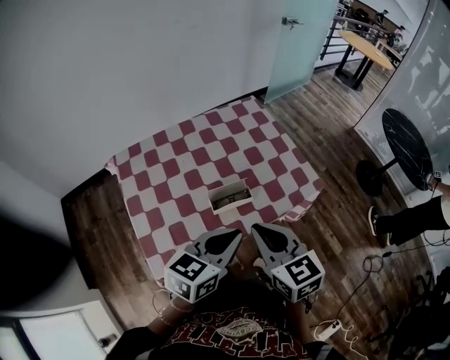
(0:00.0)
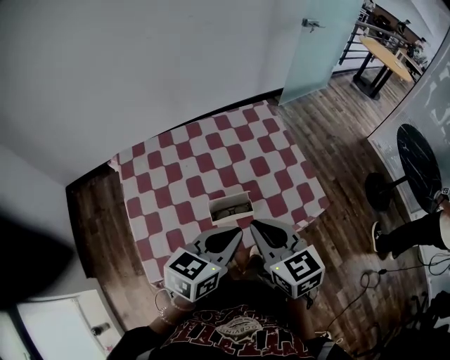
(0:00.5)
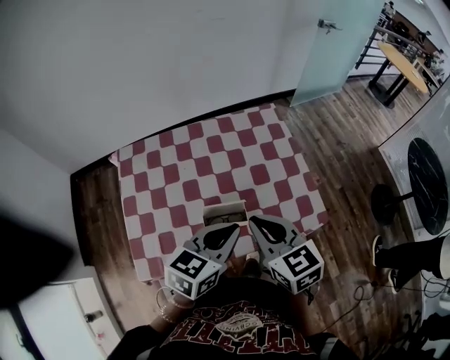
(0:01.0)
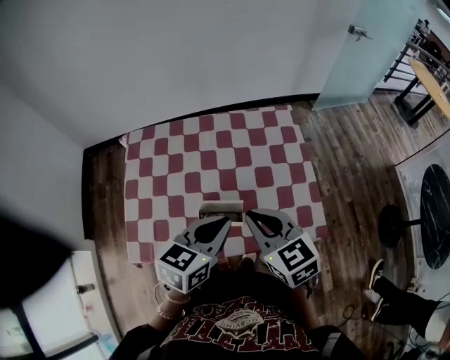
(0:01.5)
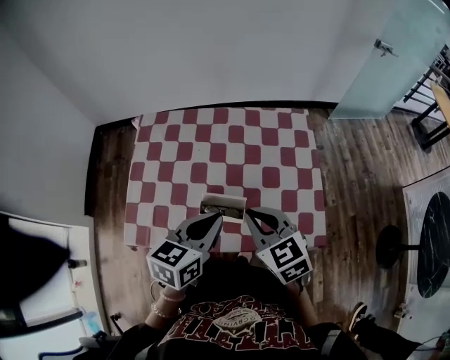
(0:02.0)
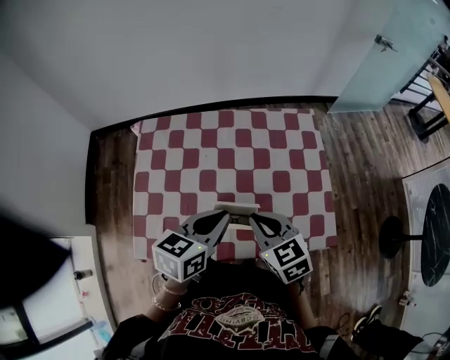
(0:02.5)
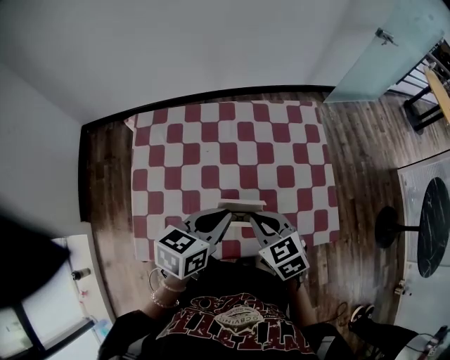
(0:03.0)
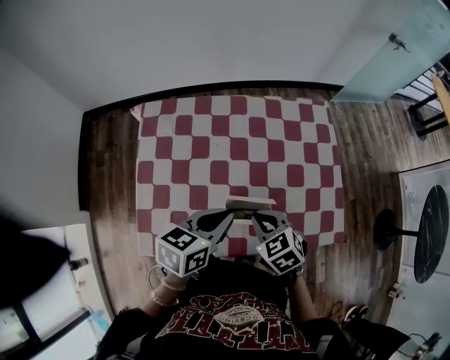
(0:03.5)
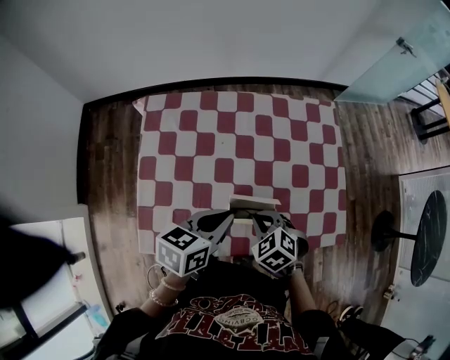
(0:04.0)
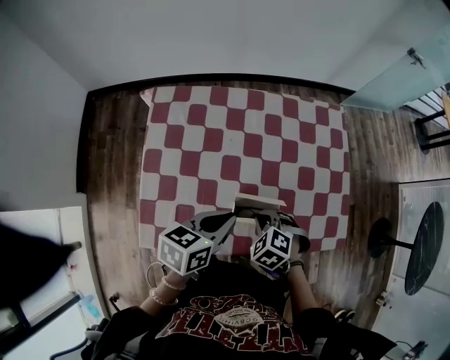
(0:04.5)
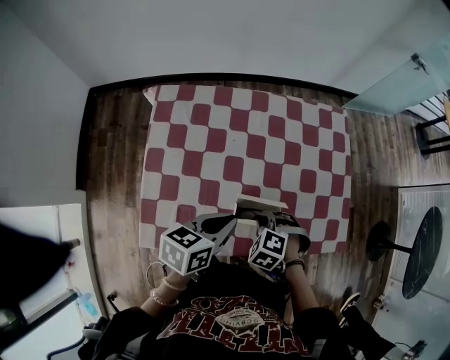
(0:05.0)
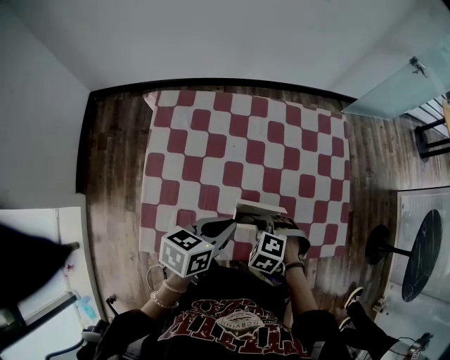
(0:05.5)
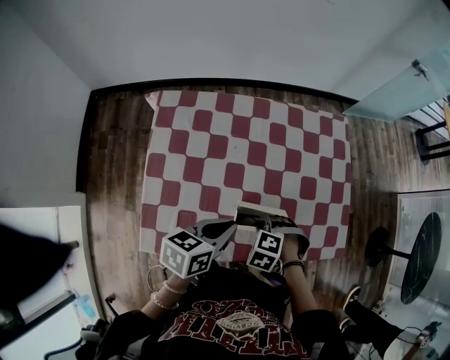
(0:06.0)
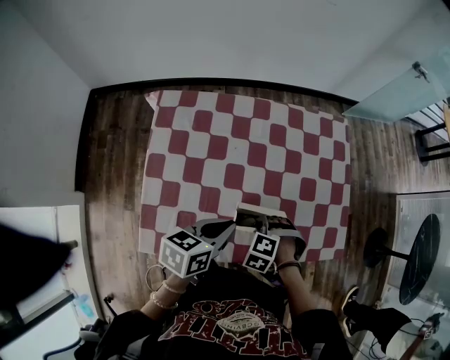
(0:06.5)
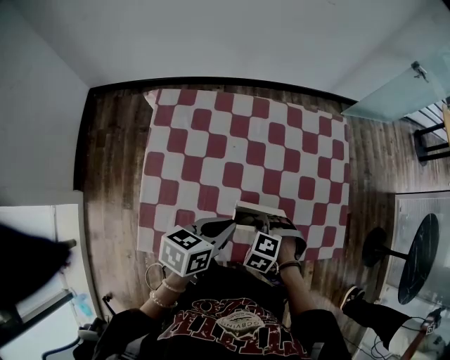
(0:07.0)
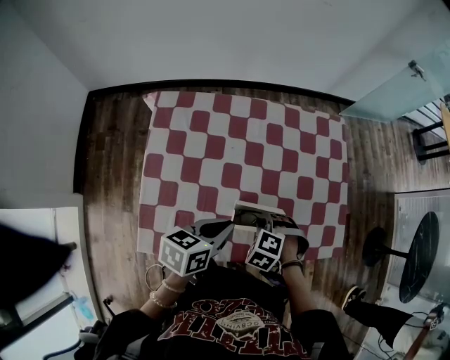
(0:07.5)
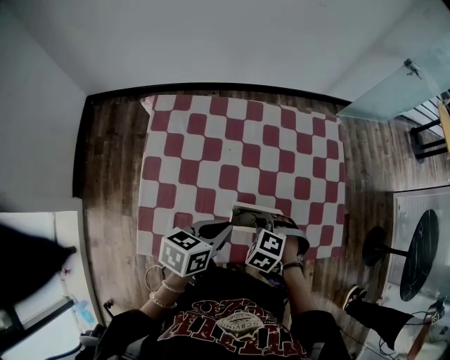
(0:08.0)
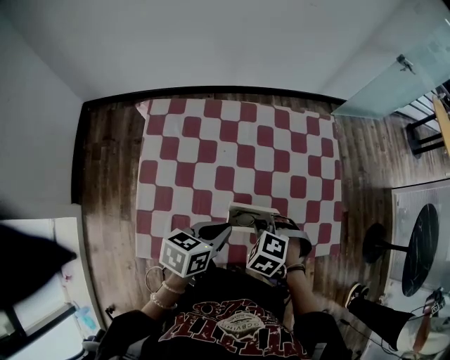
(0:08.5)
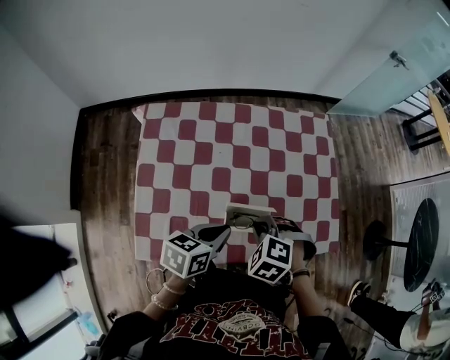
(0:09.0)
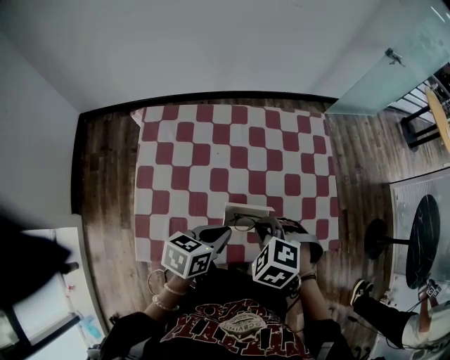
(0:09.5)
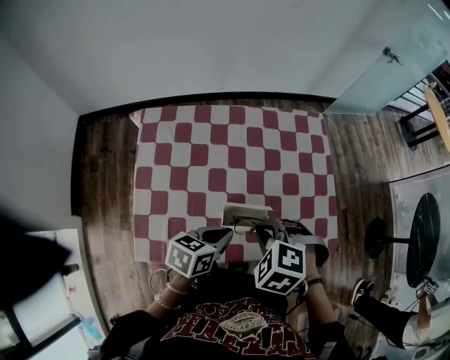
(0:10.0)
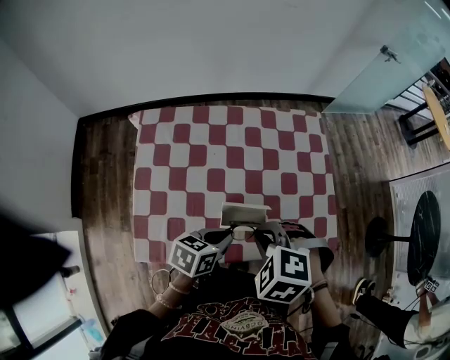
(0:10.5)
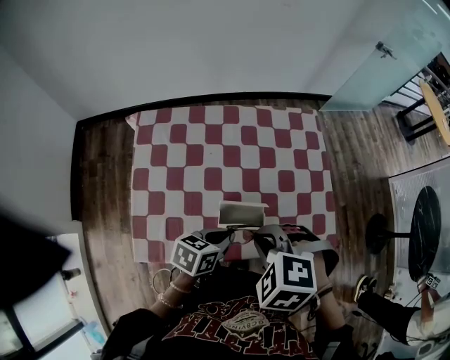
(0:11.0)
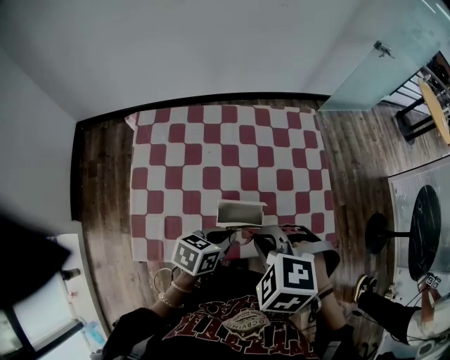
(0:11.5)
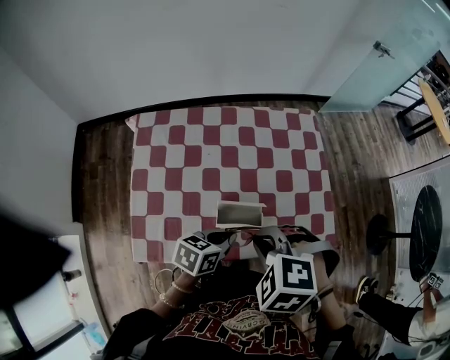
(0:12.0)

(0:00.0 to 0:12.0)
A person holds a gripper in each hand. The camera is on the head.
0:00.0 - 0:02.0: The left gripper moves roughly 15 cm, and rotates approximately 40 degrees; the right gripper changes place by approximately 15 cm, and changes its angle by about 40 degrees.
0:02.0 - 0:04.0: The right gripper shifts some 20 cm downward and to the left, and points its fingers roughly 30 degrees further downward. Meanwhile the left gripper goes roughly 10 cm to the left and downward.
0:04.0 - 0:06.0: The right gripper shifts roughly 5 cm downward, and rotates about 30 degrees.
0:06.0 - 0:08.0: The grippers stay close to where they were, moving slightly.
0:08.0 - 0:10.0: The right gripper moves upward, about 15 cm.
0:10.0 - 0:12.0: The right gripper heads upward, covering about 5 cm.

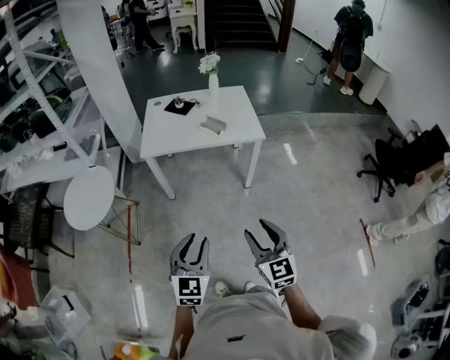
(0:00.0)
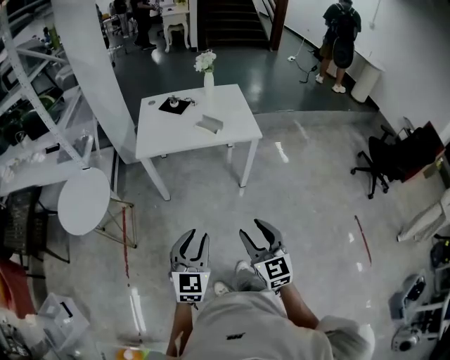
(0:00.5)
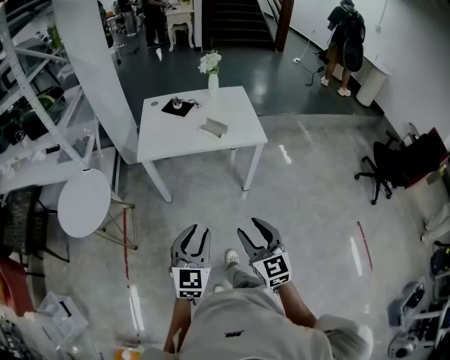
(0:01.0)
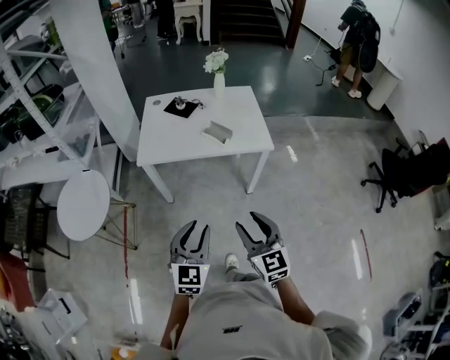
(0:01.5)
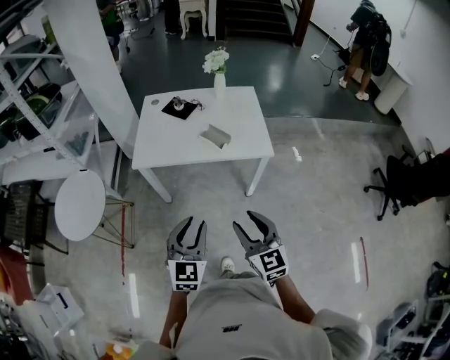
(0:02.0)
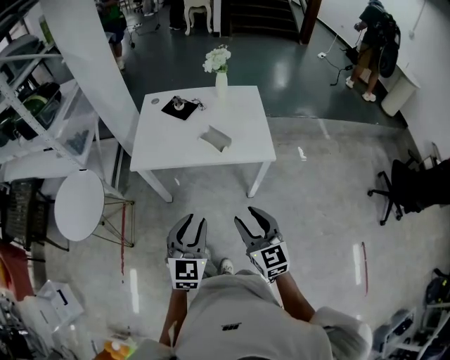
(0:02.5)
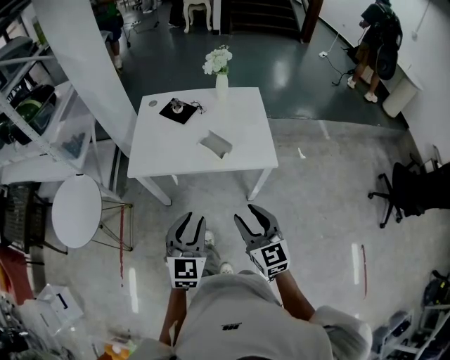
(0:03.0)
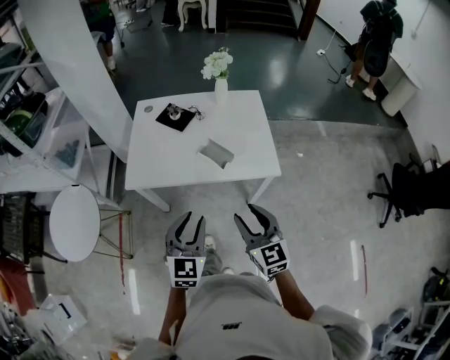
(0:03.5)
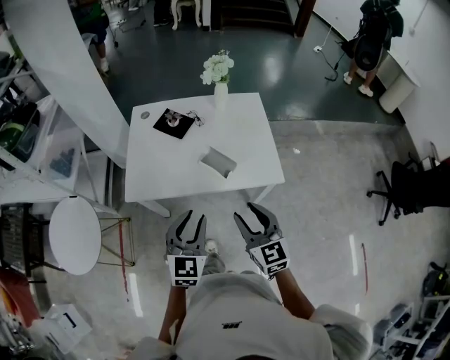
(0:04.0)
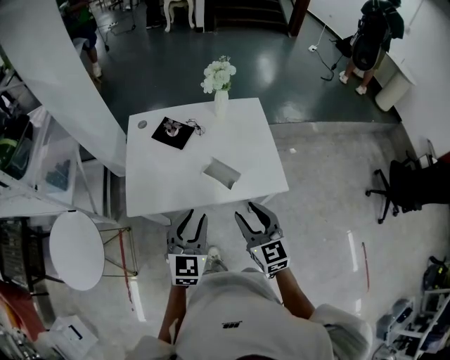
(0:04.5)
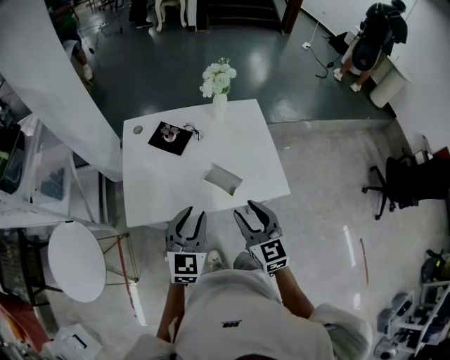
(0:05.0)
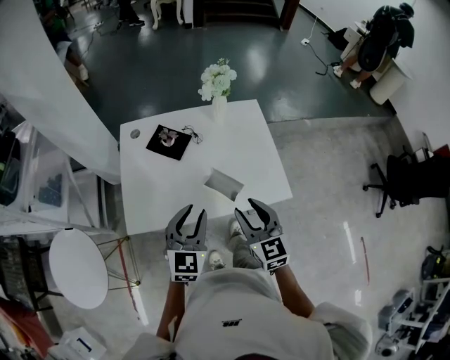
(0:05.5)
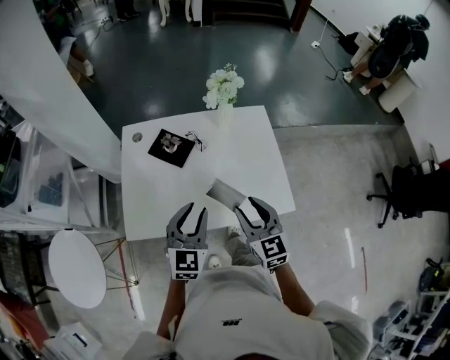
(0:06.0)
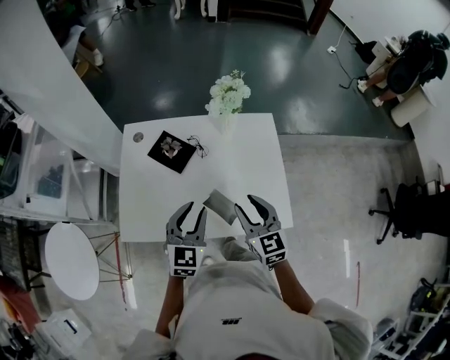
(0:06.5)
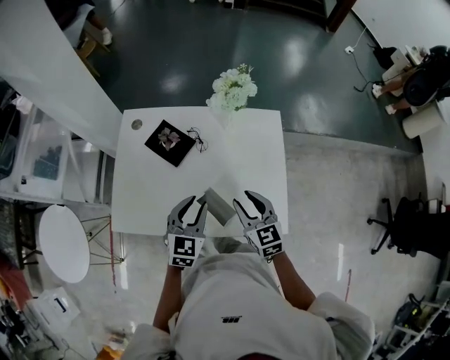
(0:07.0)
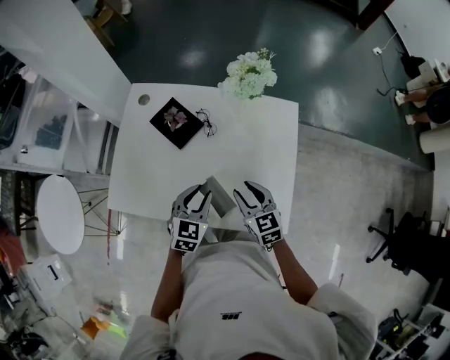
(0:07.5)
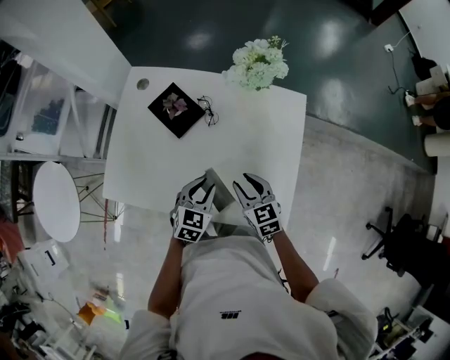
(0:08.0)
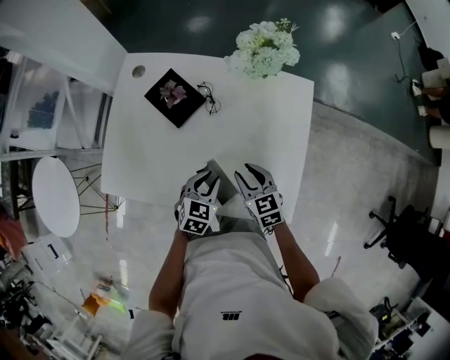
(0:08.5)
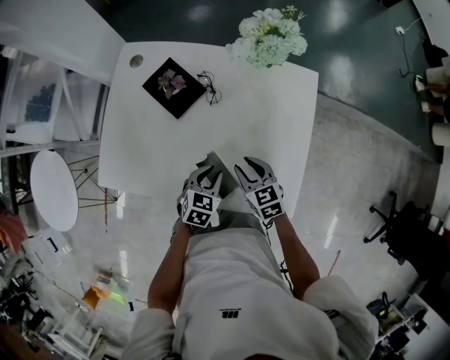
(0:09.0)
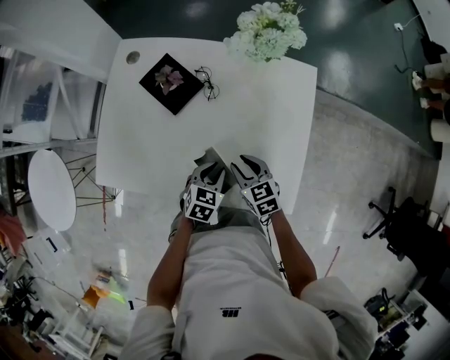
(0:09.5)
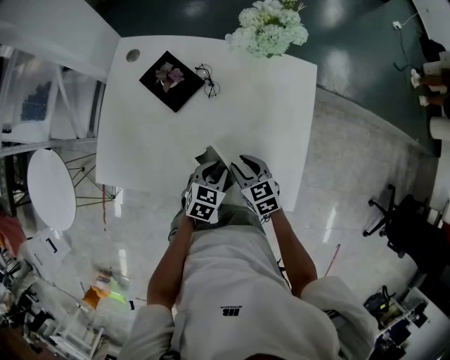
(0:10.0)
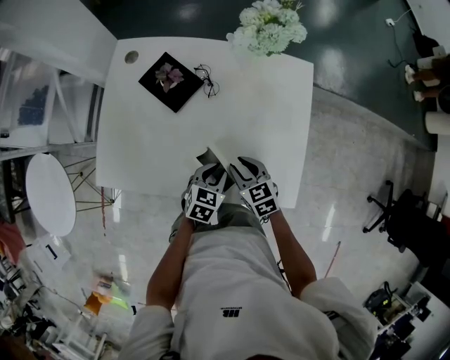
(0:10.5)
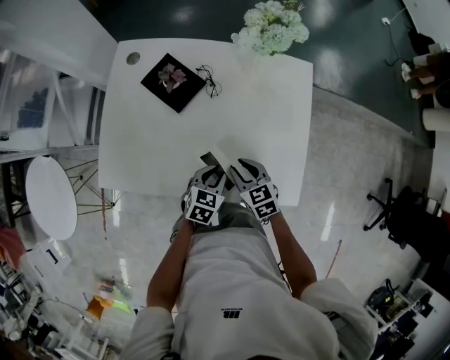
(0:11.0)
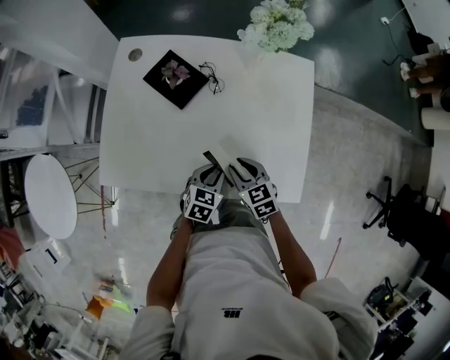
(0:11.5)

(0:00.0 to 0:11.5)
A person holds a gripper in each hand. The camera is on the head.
0:00.0 - 0:02.0: The grippers both shift forward by about 25 cm.
0:02.0 - 0:04.0: The two grippers go roughly 25 cm forward.
0:04.0 - 0:06.0: Both grippers travel together forward, some 20 cm.
0:06.0 - 0:07.5: Both grippers move downward, forward and to the right, roughly 20 cm. The right gripper turns by some 30 degrees. The left gripper turns by some 20 degrees.
0:07.5 - 0:09.5: The grippers both shift downward by approximately 15 cm.
0:09.5 - 0:11.5: The right gripper moves roughly 5 cm; the left gripper ends up roughly 5 cm from where it was.

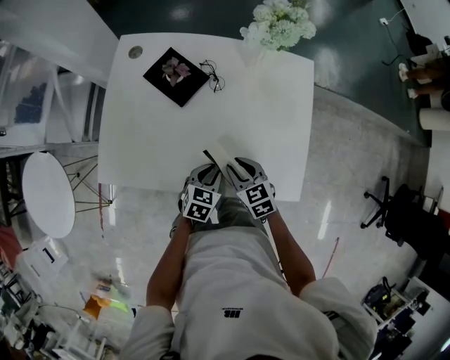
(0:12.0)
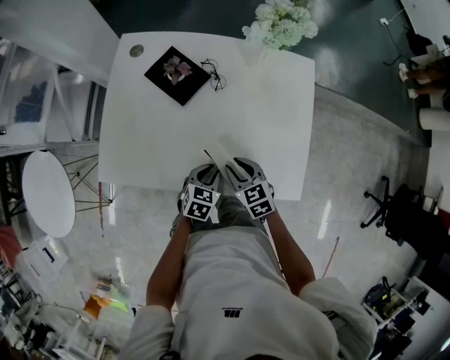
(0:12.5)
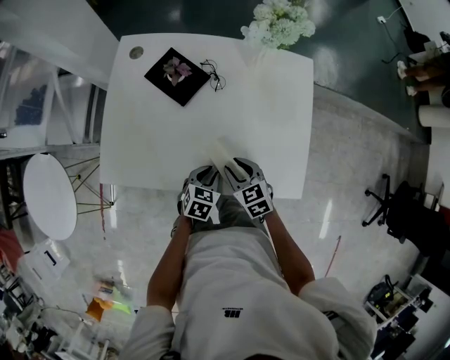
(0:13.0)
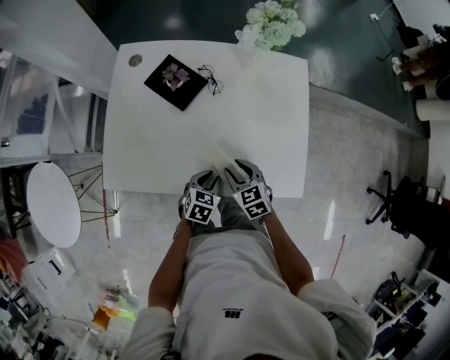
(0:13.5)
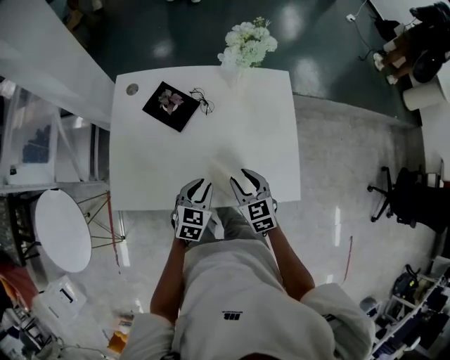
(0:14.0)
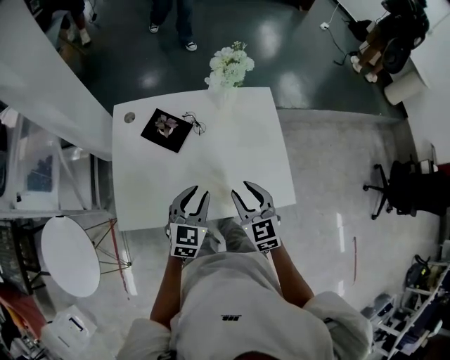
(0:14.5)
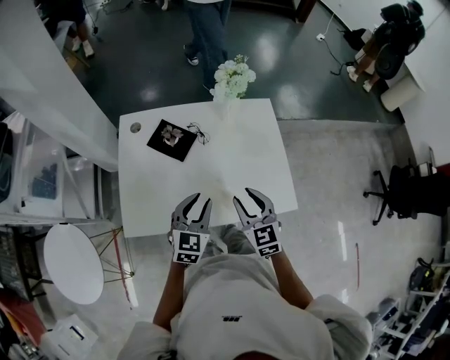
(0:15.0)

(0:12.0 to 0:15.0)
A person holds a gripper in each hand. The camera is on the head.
0:12.0 - 0:13.5: The grippers make only small movements.
0:13.5 - 0:15.0: The grippers both shift upward by approximately 20 cm. The right gripper turns by some 30 degrees; the left gripper turns by roughly 30 degrees.
